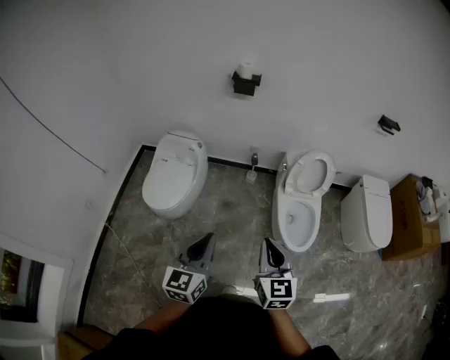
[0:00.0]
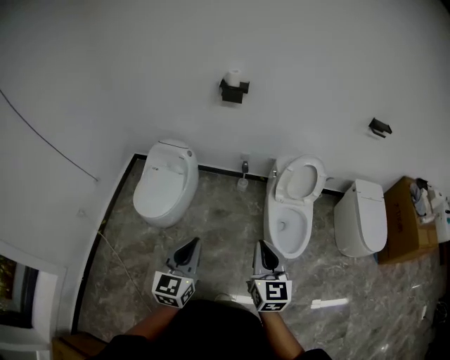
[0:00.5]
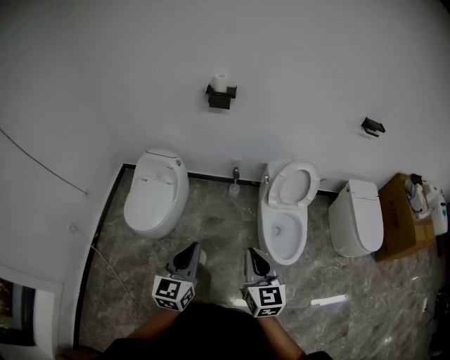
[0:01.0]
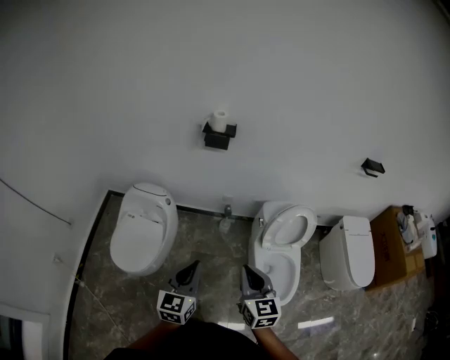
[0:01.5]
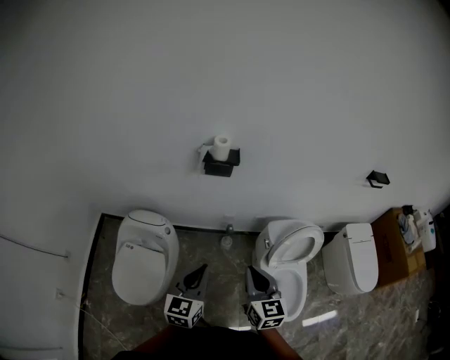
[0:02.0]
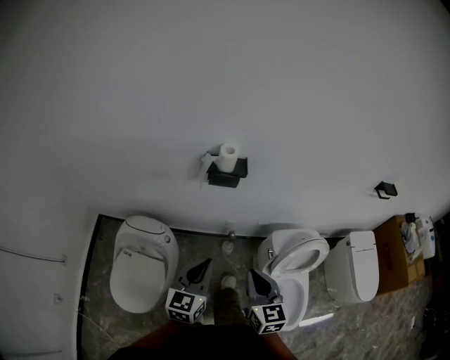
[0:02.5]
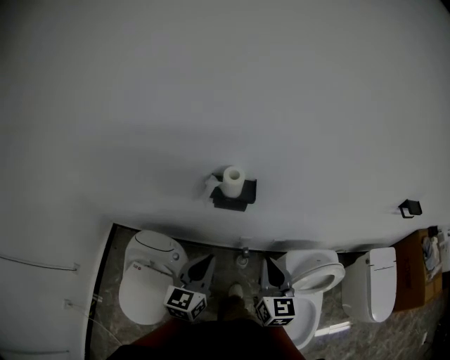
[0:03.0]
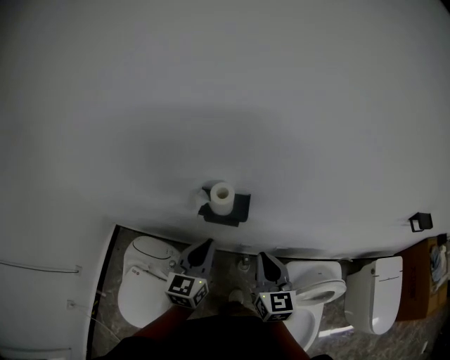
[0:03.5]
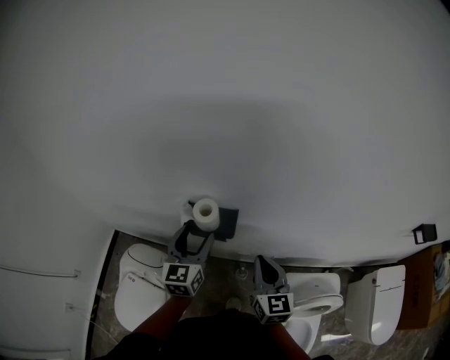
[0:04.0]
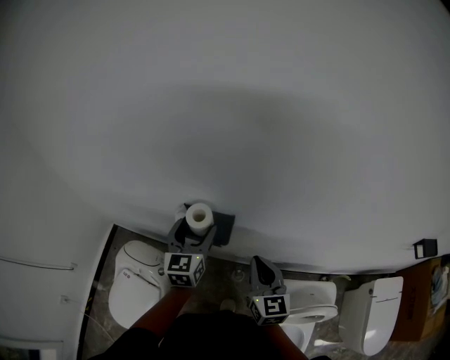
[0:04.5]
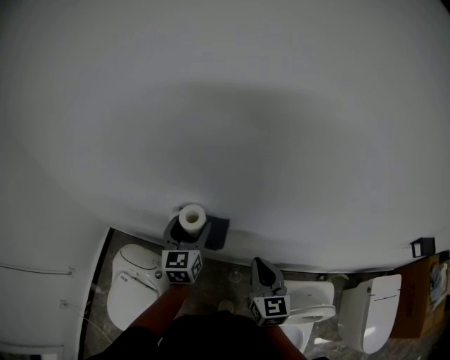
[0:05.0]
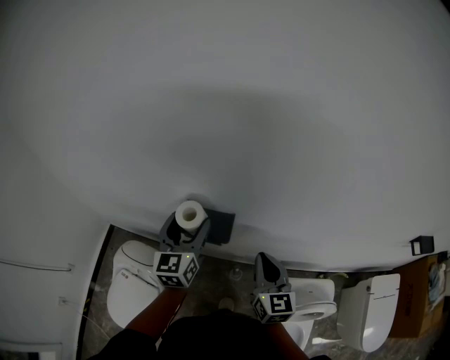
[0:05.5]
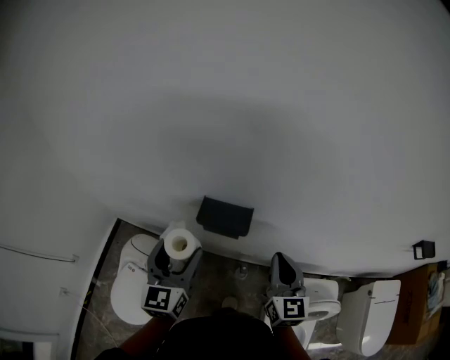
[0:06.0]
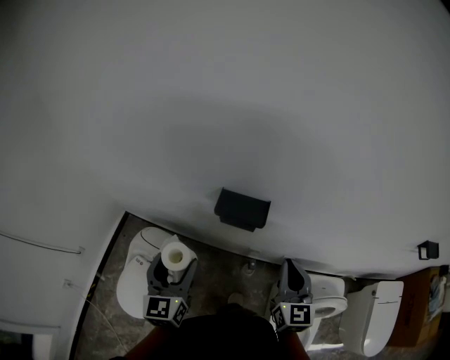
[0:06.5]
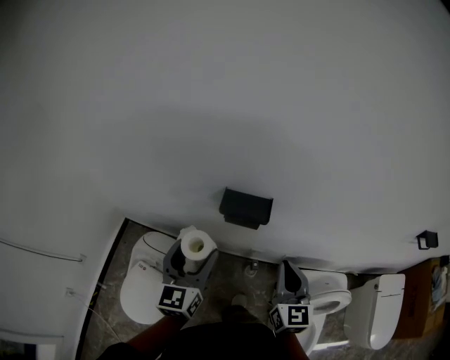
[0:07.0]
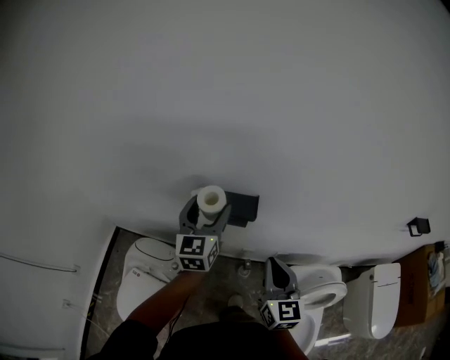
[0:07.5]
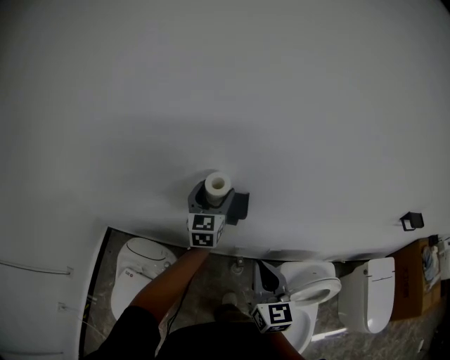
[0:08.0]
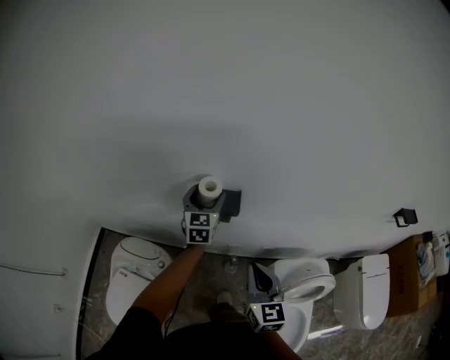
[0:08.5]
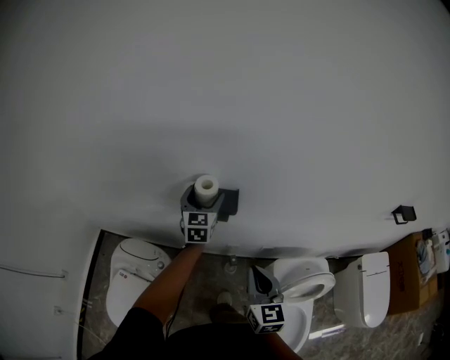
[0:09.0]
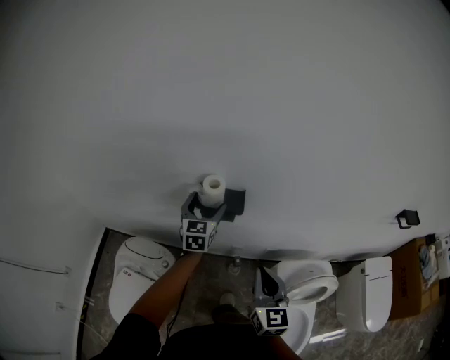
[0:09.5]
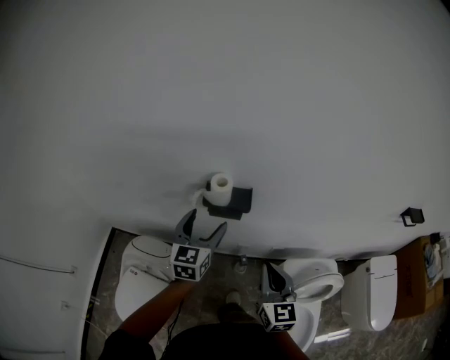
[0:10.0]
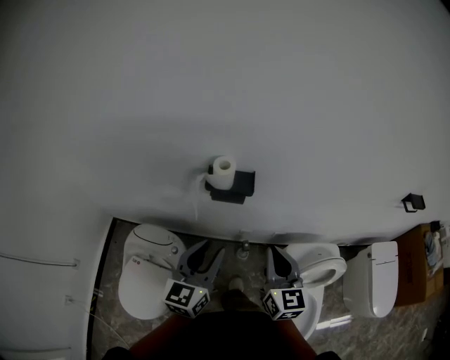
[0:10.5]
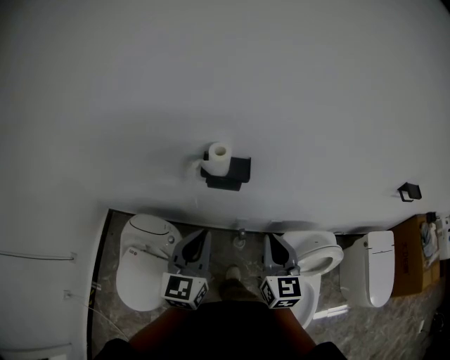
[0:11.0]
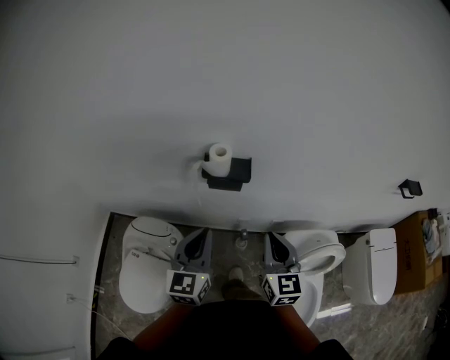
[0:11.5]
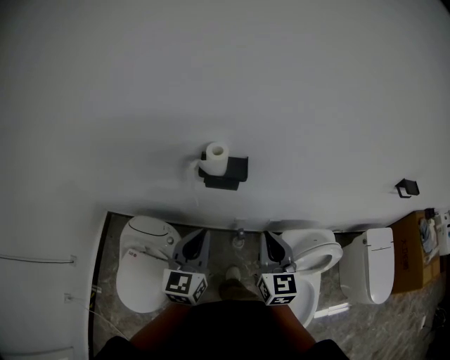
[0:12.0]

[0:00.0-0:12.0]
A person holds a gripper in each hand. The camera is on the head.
0:00.0 to 0:02.0: The two grippers travel together, forward, approximately 40 cm.
0:02.0 to 0:04.0: Both grippers are carried forward, approximately 40 cm. The left gripper opens up.
0:04.0 to 0:06.0: The left gripper is displaced backward, to the left and upward by roughly 15 cm; the right gripper goes about 5 cm upward.
0:06.0 to 0:08.0: The right gripper moves backward and to the left, approximately 10 cm; the left gripper is displaced forward and to the right by some 15 cm.
0:08.0 to 0:10.0: The left gripper moves backward, about 15 cm.
0:10.0 to 0:12.0: The left gripper moves backward, roughly 15 cm, and closes its fingers.

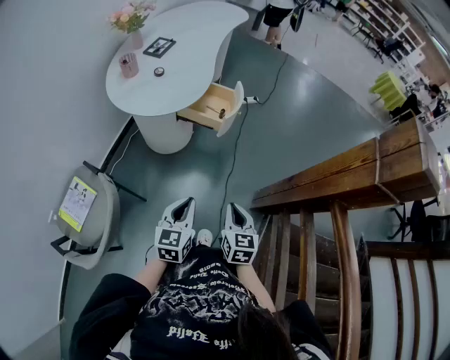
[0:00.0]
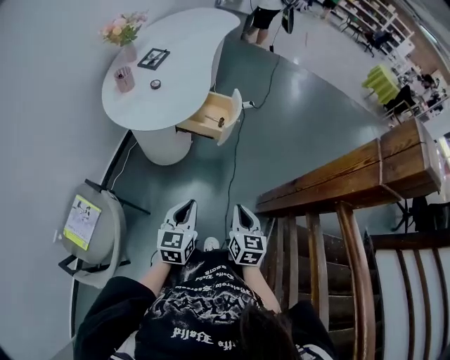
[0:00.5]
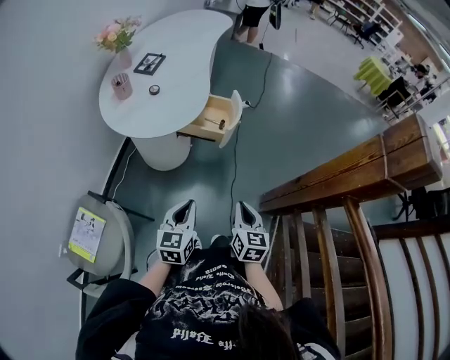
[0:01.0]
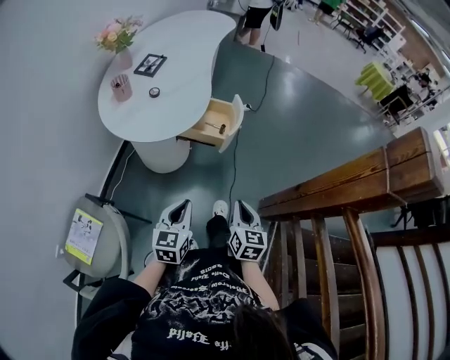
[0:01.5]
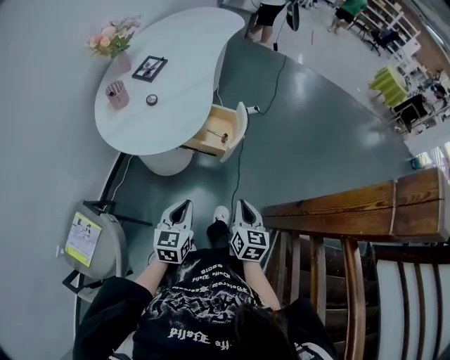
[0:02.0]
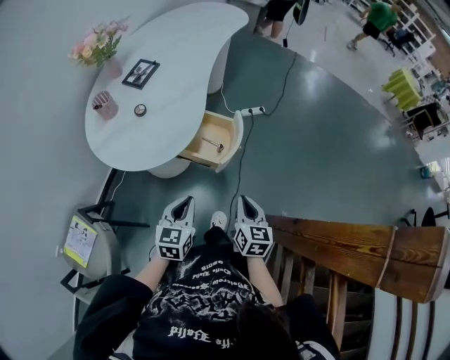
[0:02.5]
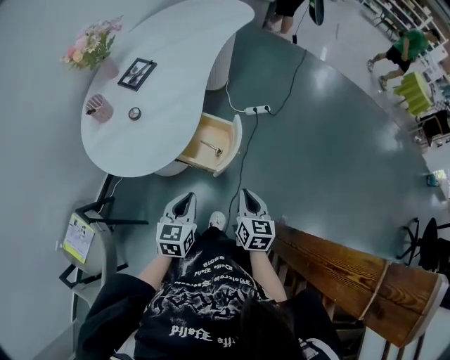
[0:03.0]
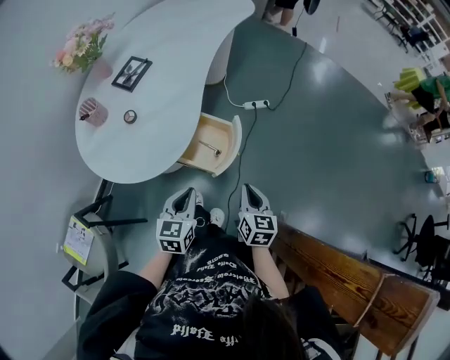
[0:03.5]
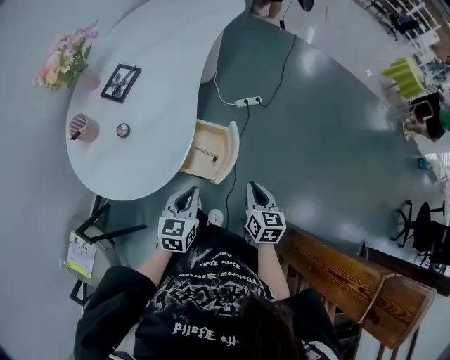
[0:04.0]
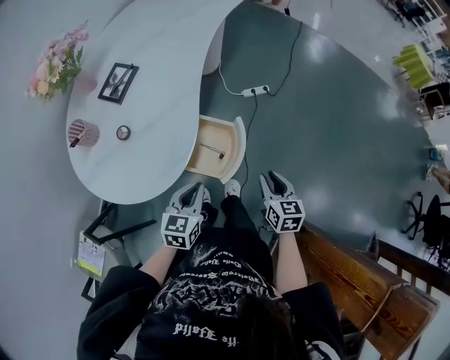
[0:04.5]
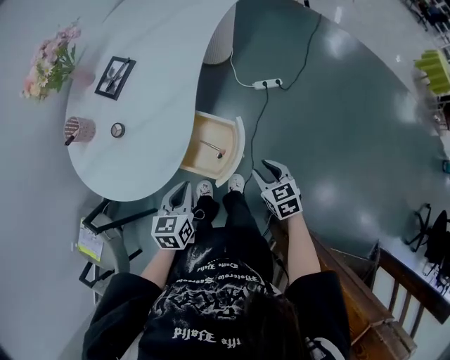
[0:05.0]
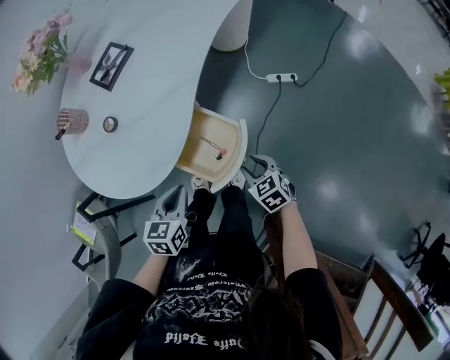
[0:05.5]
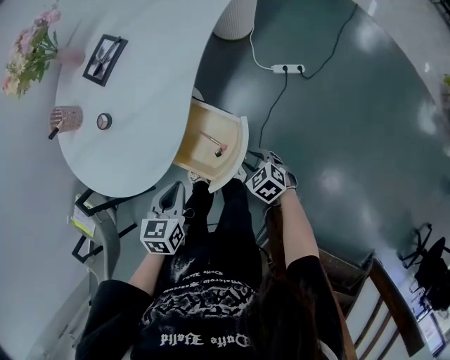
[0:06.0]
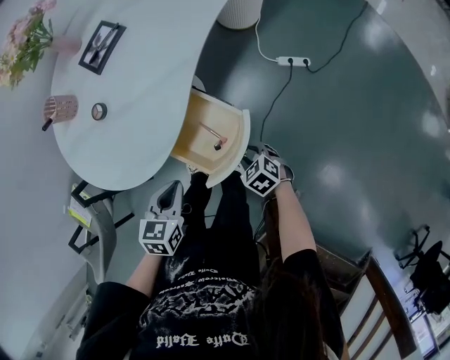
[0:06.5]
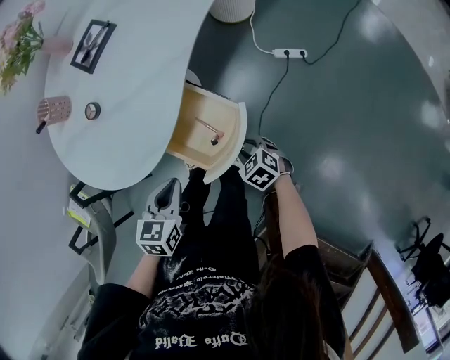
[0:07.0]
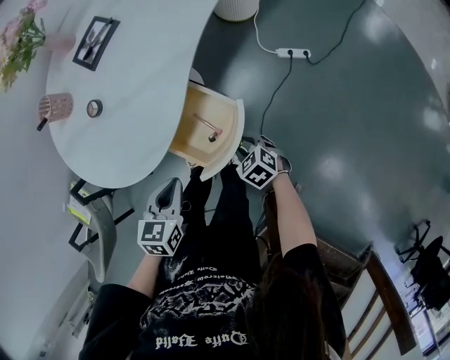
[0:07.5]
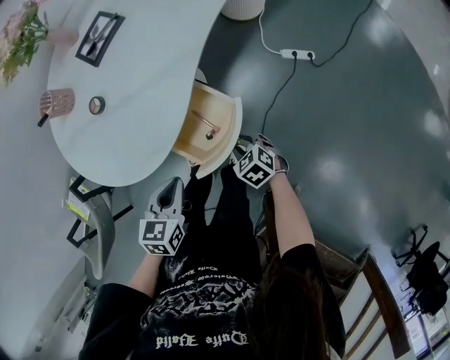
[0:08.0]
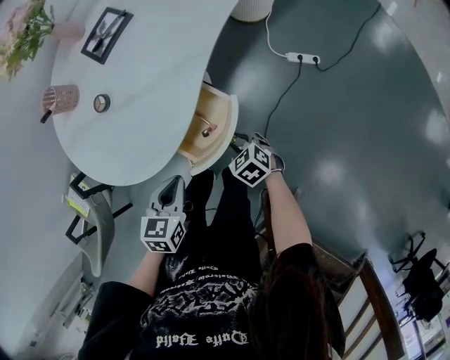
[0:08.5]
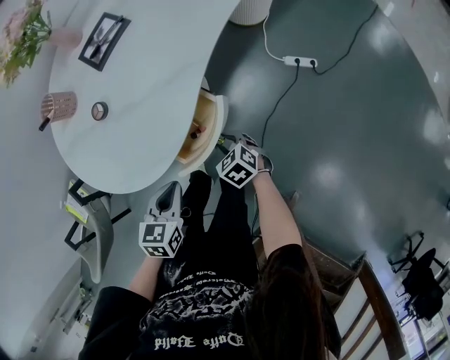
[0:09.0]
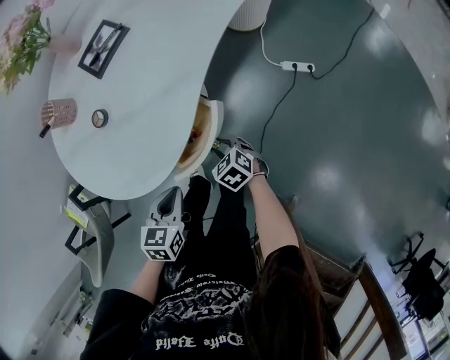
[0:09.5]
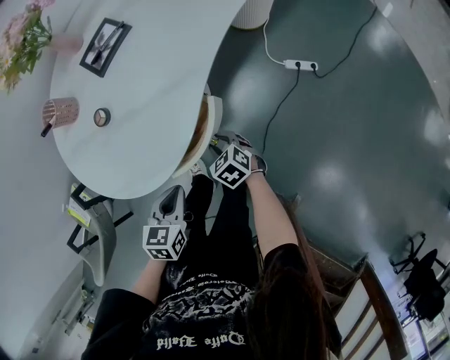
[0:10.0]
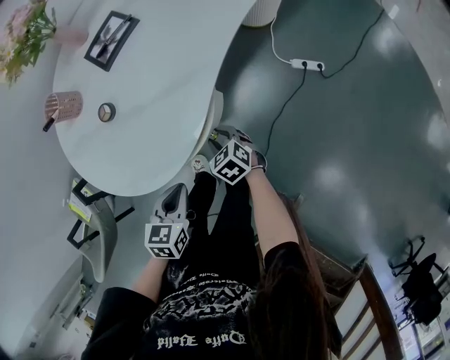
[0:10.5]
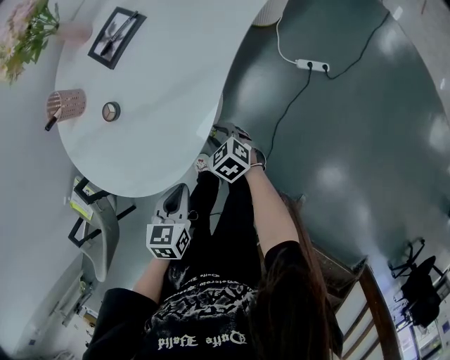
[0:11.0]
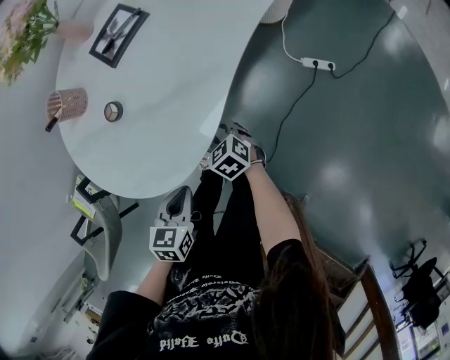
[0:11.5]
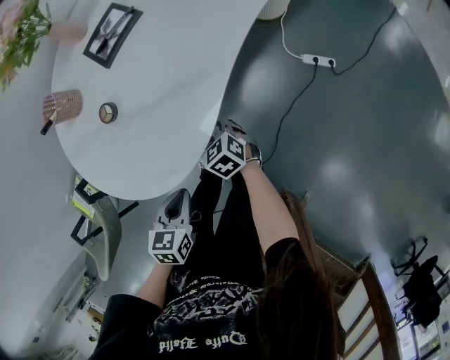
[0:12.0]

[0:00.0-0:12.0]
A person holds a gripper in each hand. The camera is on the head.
0:00.0 to 0:02.0: The left gripper moves forward and to the left, about 15 cm. The right gripper heads forward, covering some 15 cm.
0:02.0 to 0:04.0: The grippers both shift forward by about 25 cm.
0:04.0 to 0:06.0: The right gripper shifts approximately 20 cm downward, rotates approximately 70 degrees, and opens up. Meanwhile the left gripper travels downward by approximately 10 cm, and changes its angle by roughly 30 degrees.
0:06.0 to 0:08.0: The right gripper moves some 5 cm.
0:08.0 to 0:10.0: The right gripper shifts roughly 10 cm forward and to the left.
0:10.0 to 0:12.0: The right gripper moves forward and to the left, approximately 10 cm.

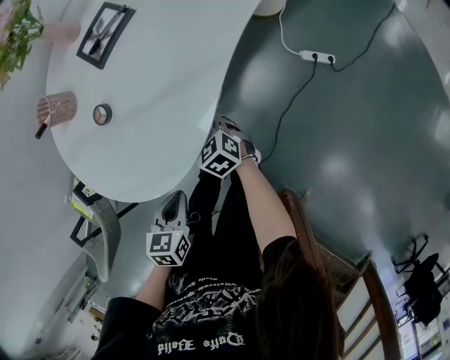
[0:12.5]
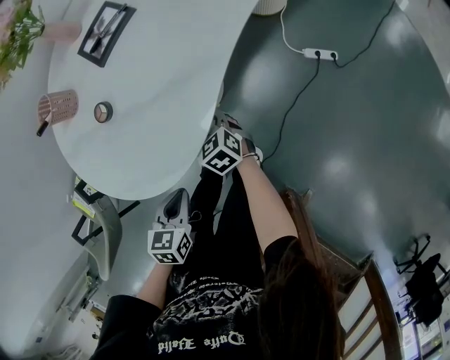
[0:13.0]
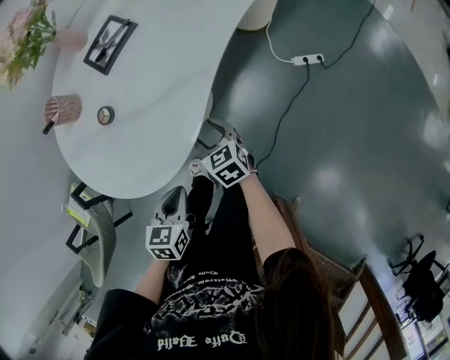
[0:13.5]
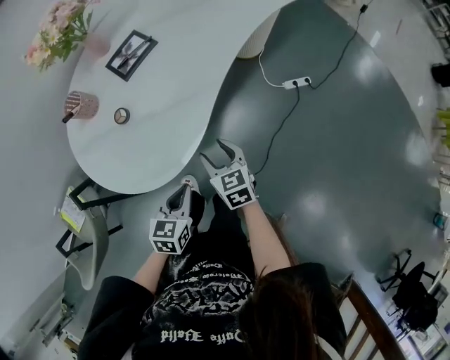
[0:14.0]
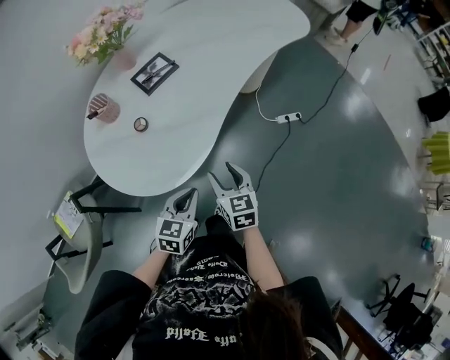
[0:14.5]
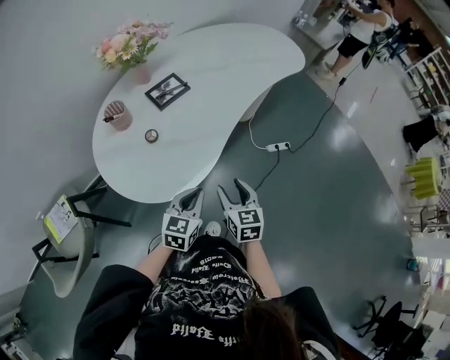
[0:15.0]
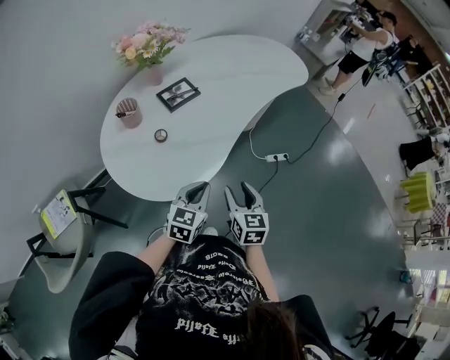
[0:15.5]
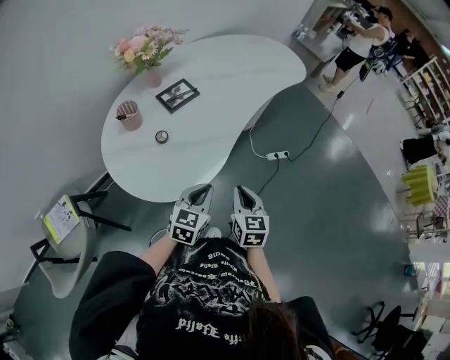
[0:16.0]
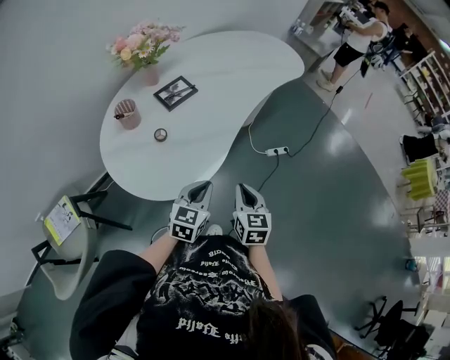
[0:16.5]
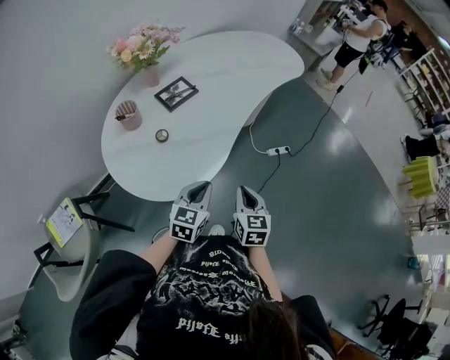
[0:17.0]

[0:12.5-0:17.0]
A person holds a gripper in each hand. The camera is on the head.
0:12.5 to 0:14.5: The left gripper heads upward and to the right, covering about 15 cm, and rotates roughly 20 degrees. The right gripper goes about 25 cm upward and backward, swivels about 30 degrees, and opens up.
0:14.5 to 0:17.0: The left gripper shifts some 5 cm upward. The right gripper shifts by roughly 5 cm, and closes up.
